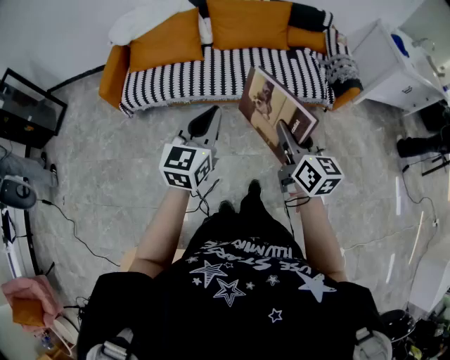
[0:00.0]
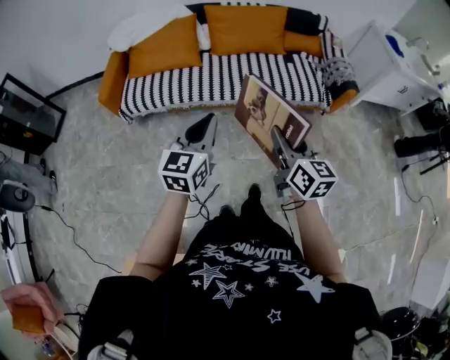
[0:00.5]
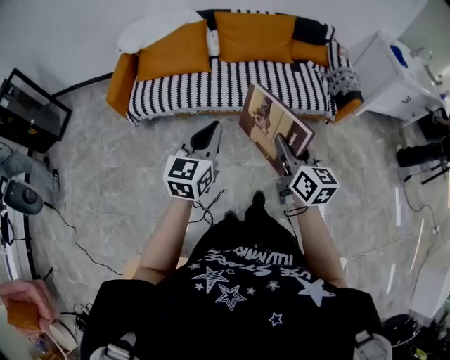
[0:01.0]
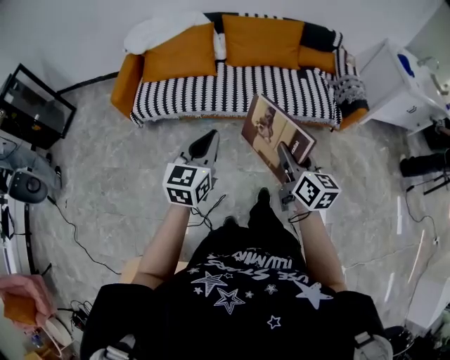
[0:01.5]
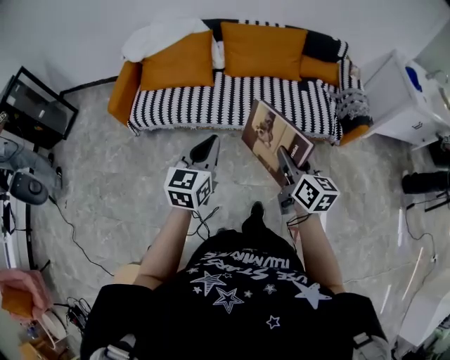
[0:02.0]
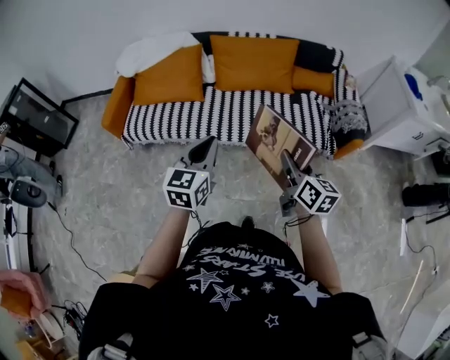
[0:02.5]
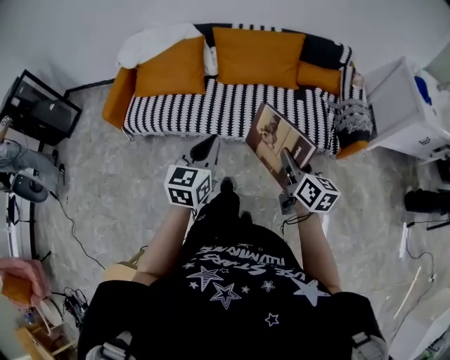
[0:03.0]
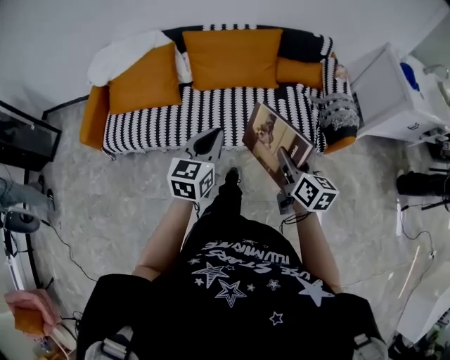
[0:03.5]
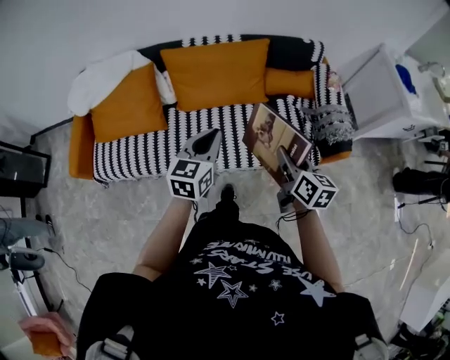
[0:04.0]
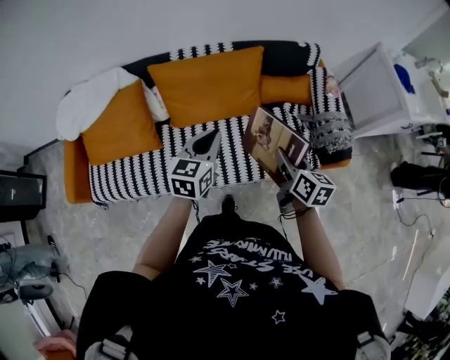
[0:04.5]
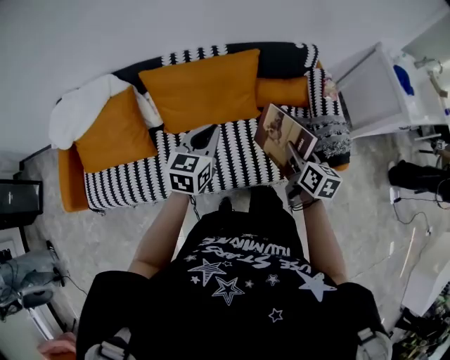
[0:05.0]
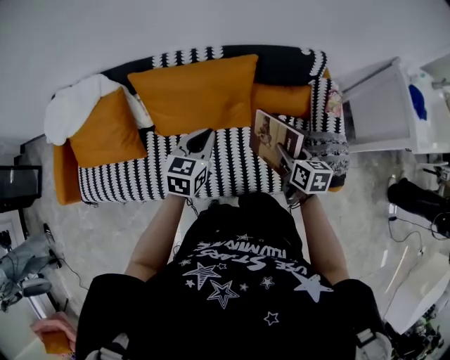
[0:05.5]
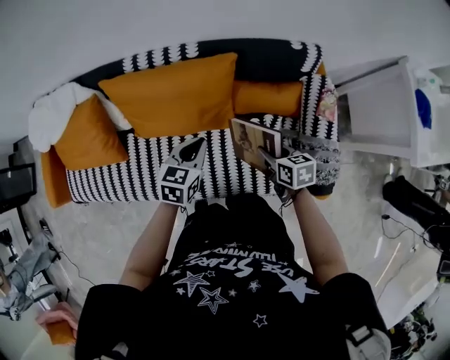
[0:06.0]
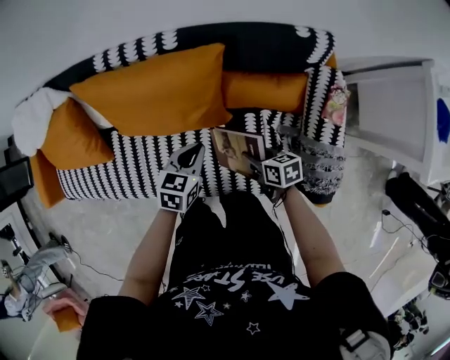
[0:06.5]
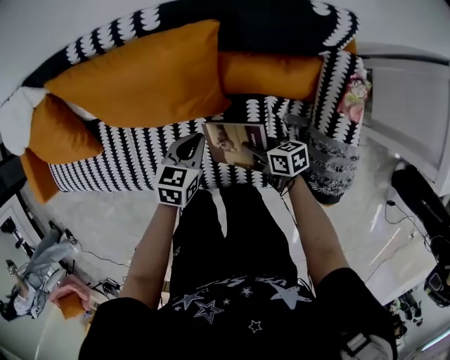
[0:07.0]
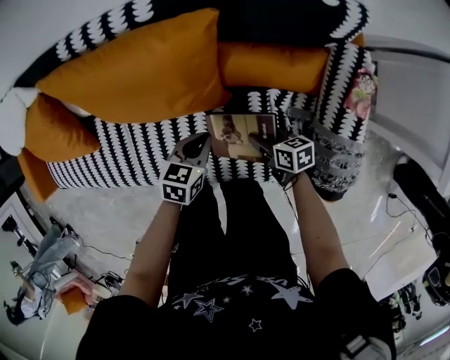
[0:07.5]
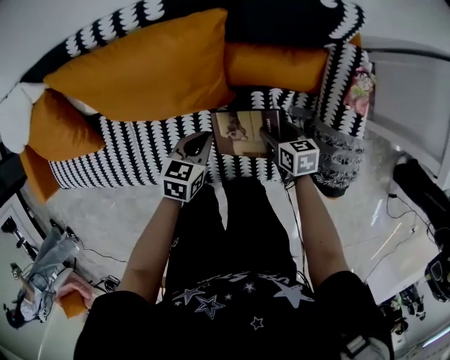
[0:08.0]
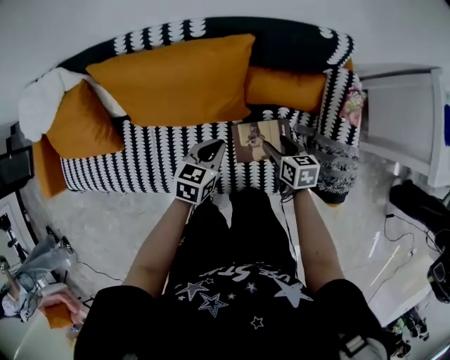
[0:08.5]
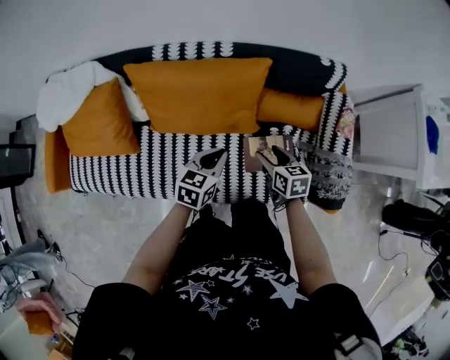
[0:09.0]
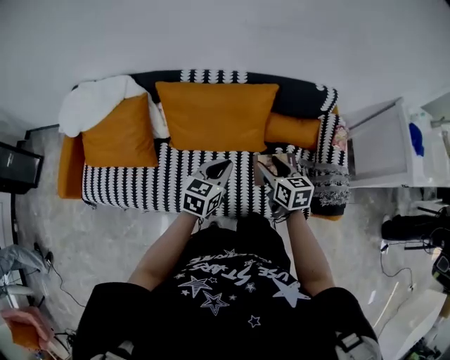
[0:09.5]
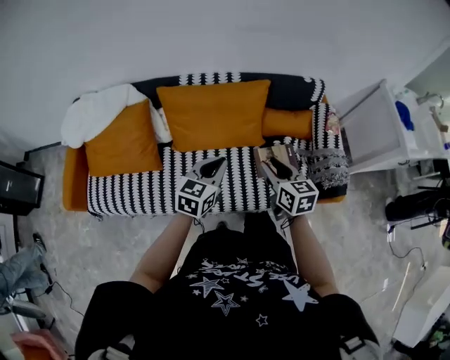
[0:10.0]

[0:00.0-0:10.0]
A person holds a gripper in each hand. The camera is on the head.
0:00.0 to 0:02.0: Both grippers travel together forward, some 10 cm.
0:02.0 to 0:04.0: The grippers both shift forward and to the right by approximately 35 cm.
0:04.0 to 0:06.0: The right gripper is displaced forward and downward by about 35 cm, and changes its angle by some 30 degrees, while the left gripper moves forward, downward and to the right, about 35 cm.
0:06.0 to 0:08.0: Both grippers move downward, some 20 cm. The right gripper opens.
0:08.0 to 0:10.0: Both grippers travel together upward, to the left and backward, some 40 cm. The right gripper swivels some 30 degrees, and closes its fingers. Meanwhile the left gripper turns by roughly 30 degrees.

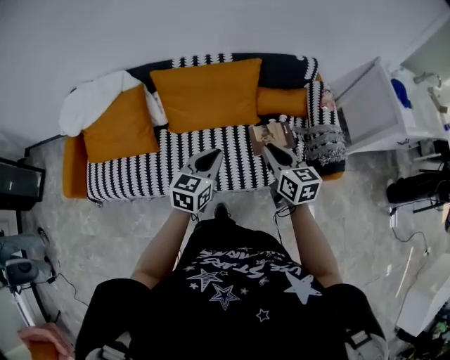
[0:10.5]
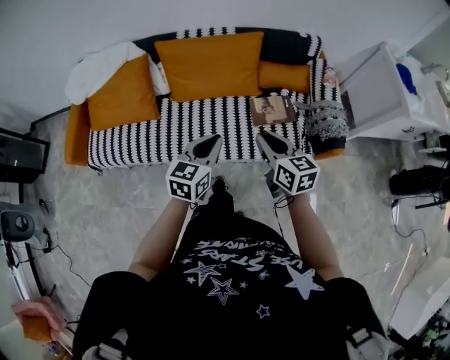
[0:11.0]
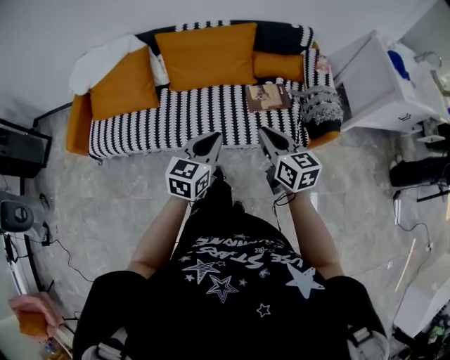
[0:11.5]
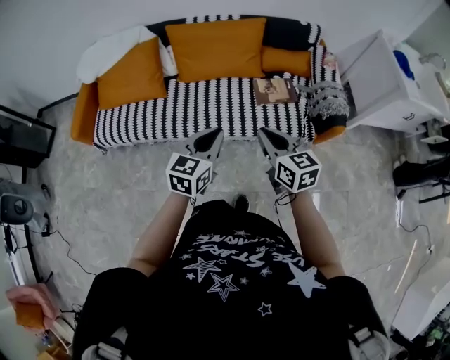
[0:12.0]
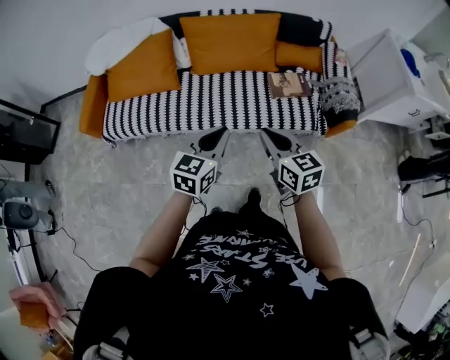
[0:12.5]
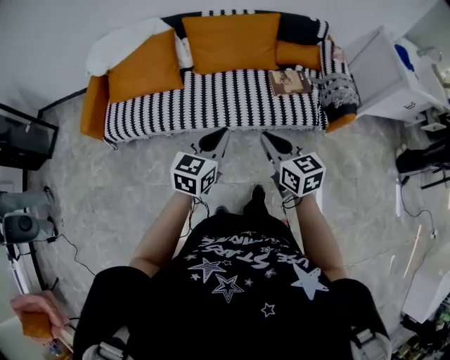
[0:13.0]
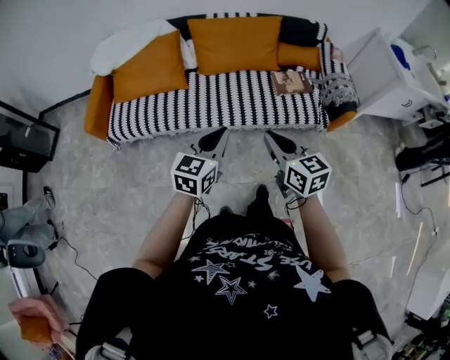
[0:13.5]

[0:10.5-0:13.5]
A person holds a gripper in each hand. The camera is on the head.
0:10.5 to 0:12.0: The grippers both shift backward by roughly 25 cm.
0:12.0 to 0:13.5: The grippers both shift to the left and backward by approximately 20 cm.

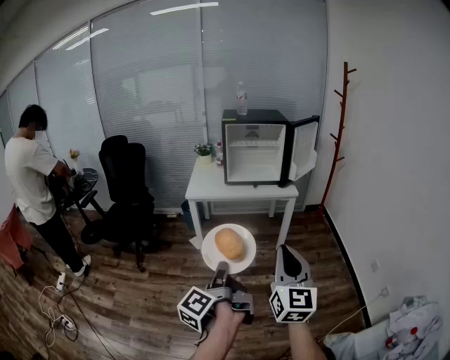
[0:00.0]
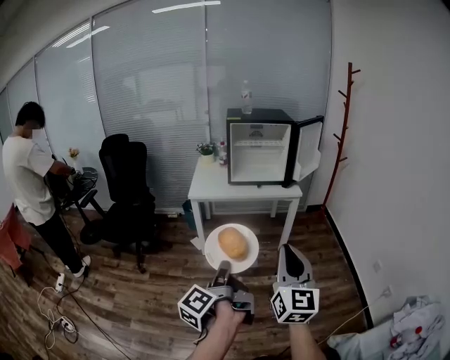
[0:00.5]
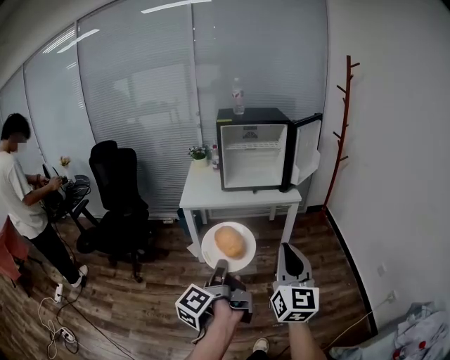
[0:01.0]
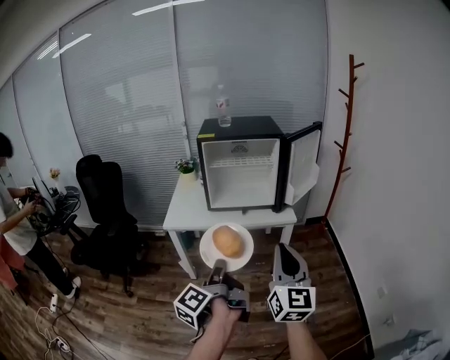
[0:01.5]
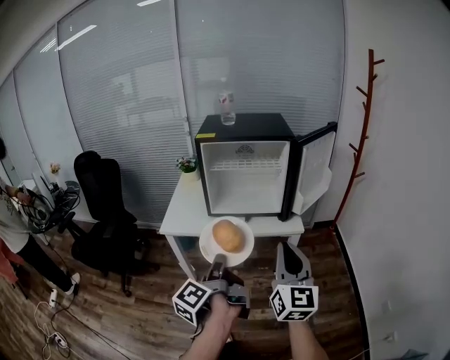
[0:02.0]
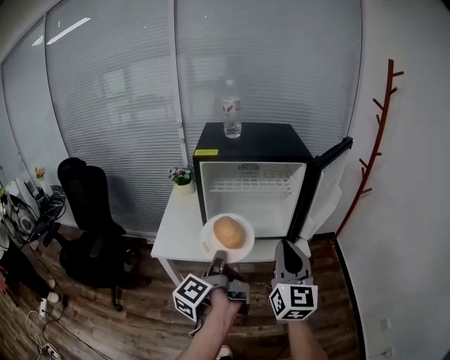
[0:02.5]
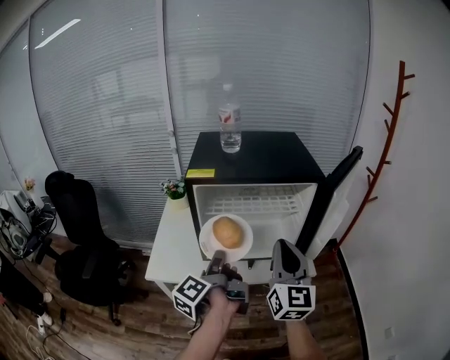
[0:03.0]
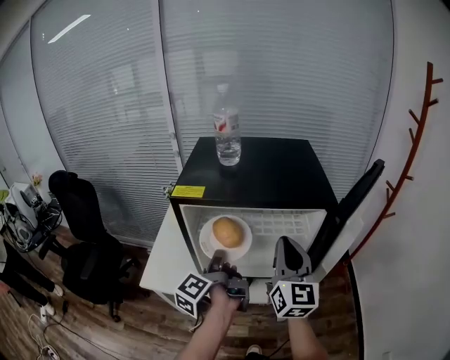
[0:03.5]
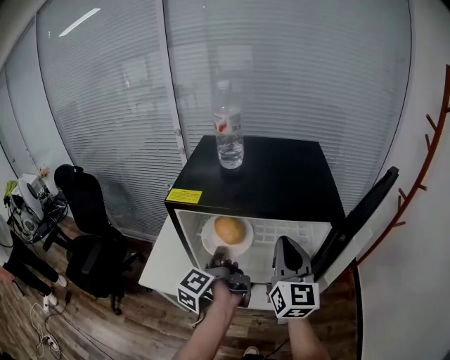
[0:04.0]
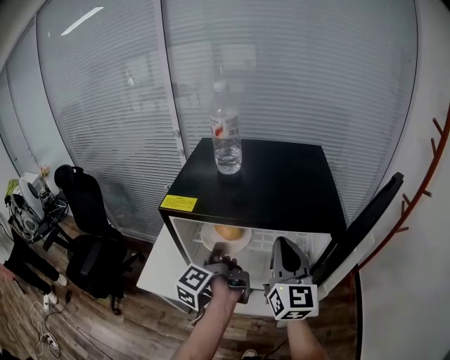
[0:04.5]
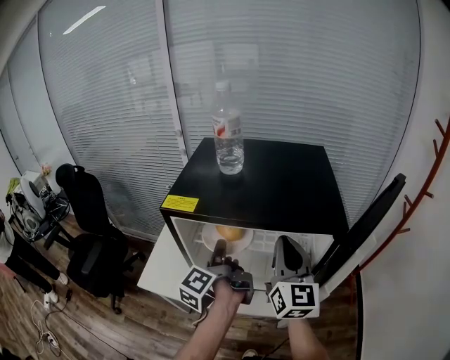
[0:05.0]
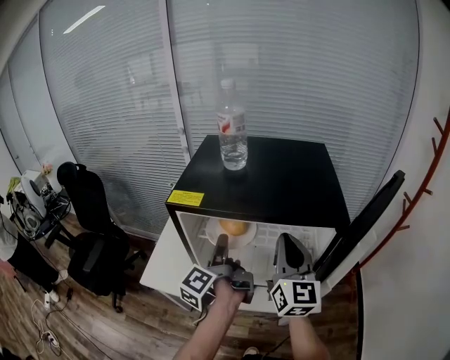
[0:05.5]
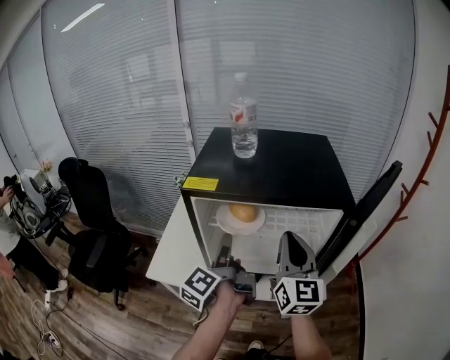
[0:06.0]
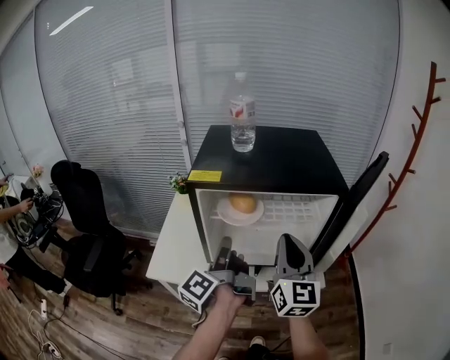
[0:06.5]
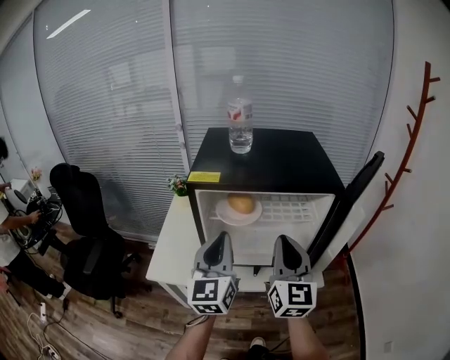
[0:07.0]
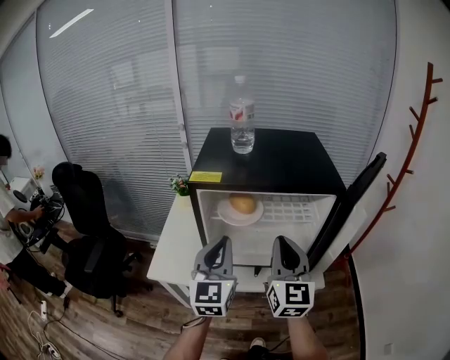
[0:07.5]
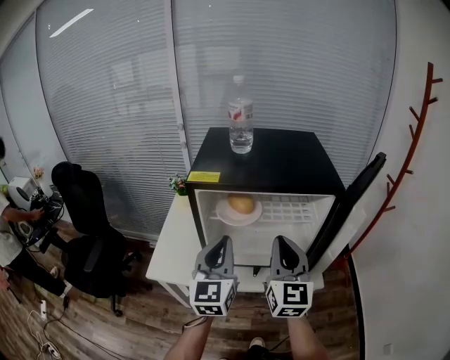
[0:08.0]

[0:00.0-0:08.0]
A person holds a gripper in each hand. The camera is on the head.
0:00.0 to 0:02.0: The right gripper moves some 40 cm.
0:02.0 to 0:04.0: The right gripper shifts by roughly 40 cm.
0:06.0 to 0:08.0: The right gripper moves some 5 cm.

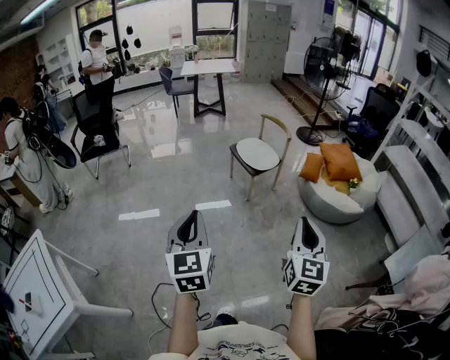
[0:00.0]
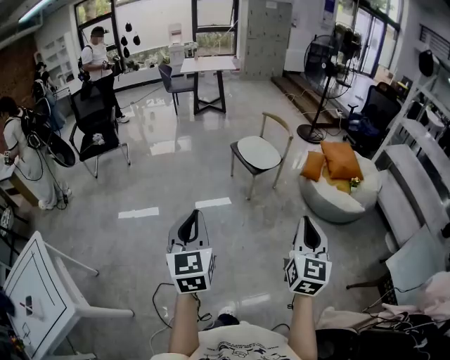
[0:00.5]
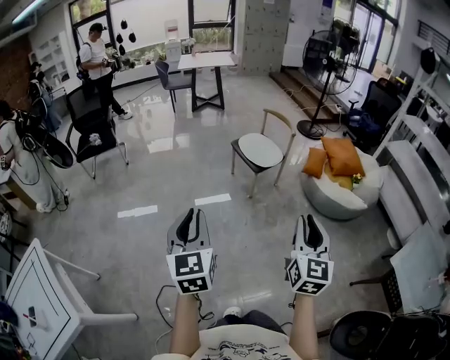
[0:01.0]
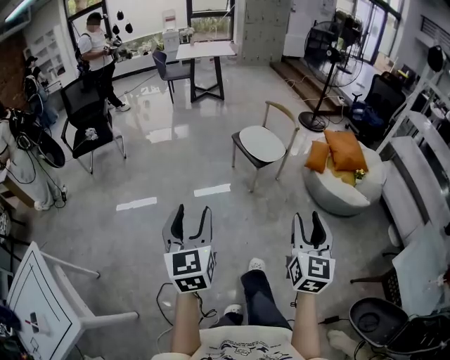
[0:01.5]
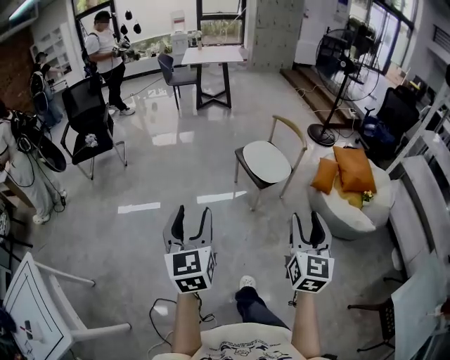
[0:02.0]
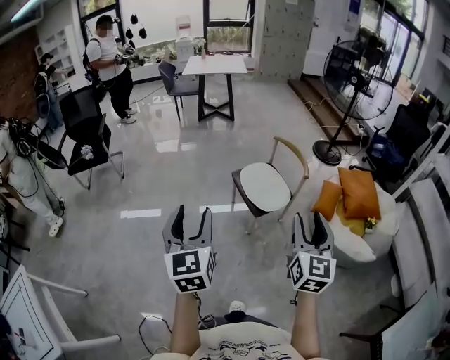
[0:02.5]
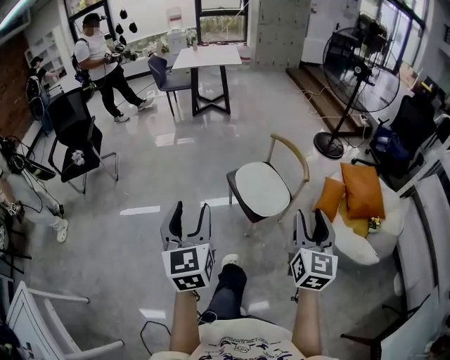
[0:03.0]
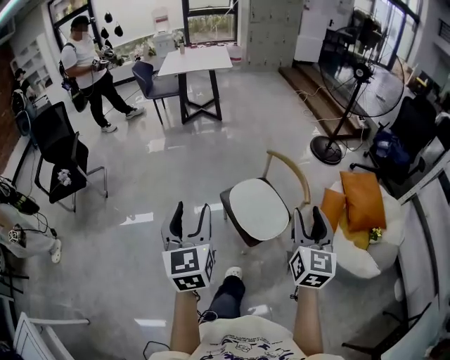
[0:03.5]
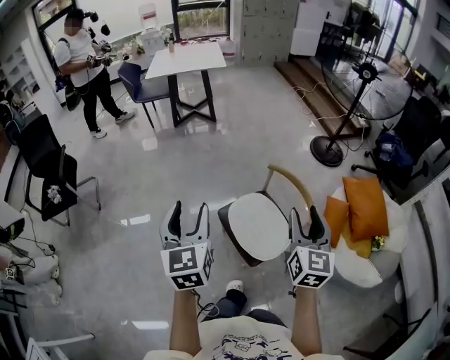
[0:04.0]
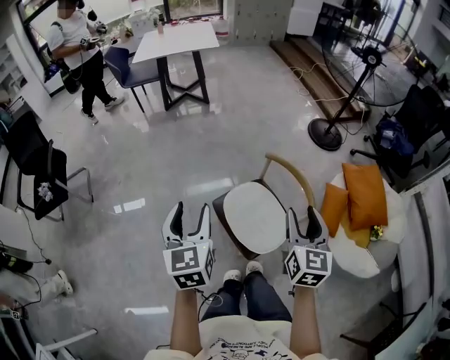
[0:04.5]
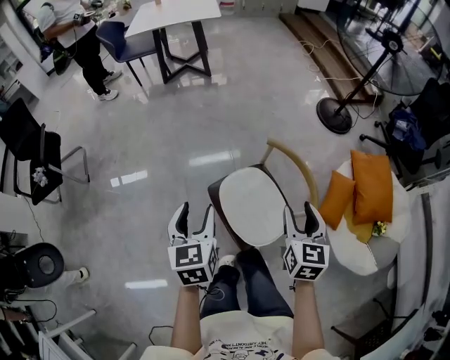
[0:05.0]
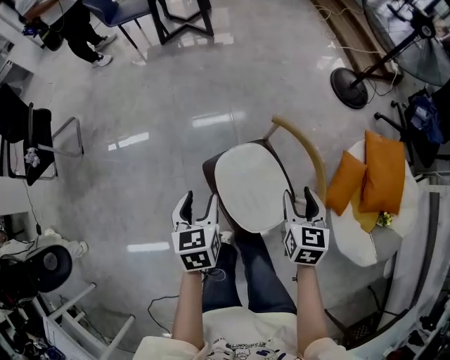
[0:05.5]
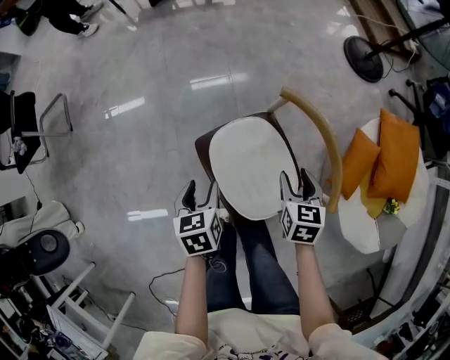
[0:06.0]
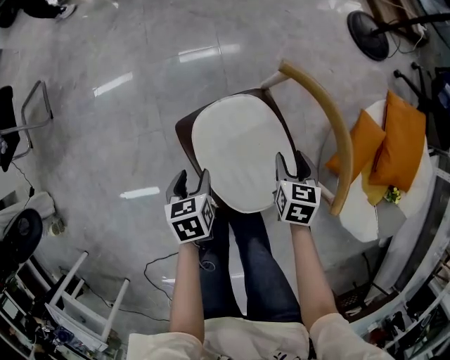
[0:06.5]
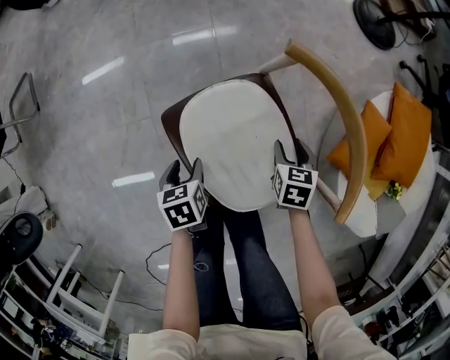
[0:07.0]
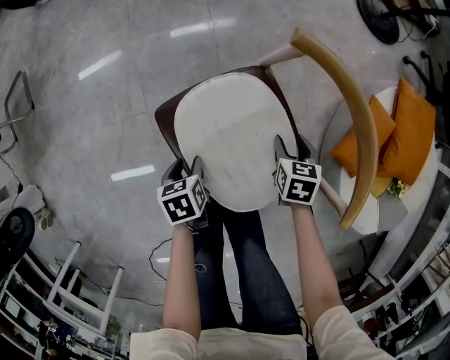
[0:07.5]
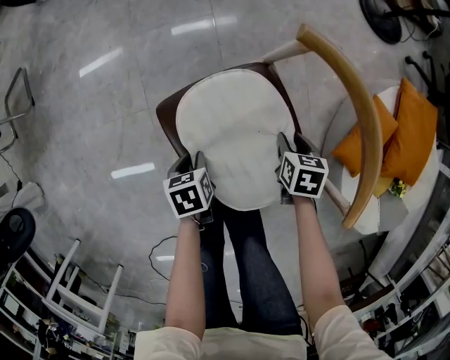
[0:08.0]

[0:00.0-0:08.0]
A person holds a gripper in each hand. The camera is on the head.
0:00.0 to 0:02.0: The two grippers go some 30 cm forward. The right gripper opens its fingers. The left gripper opens up.
0:02.0 to 0:04.0: Both grippers are carried forward, approximately 70 cm.
0:04.0 to 0:06.0: Both grippers travel together downward and forward, approximately 50 cm. The right gripper tilts its fingers some 40 degrees downward, while the left gripper points its fingers some 40 degrees further downward.
0:06.0 to 0:08.0: Both grippers move downward, some 30 cm. The right gripper changes its angle by approximately 20 degrees. The left gripper changes its angle by about 20 degrees, and closes.
